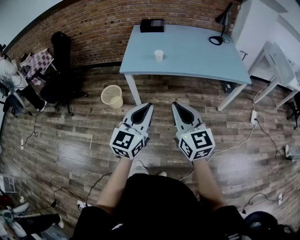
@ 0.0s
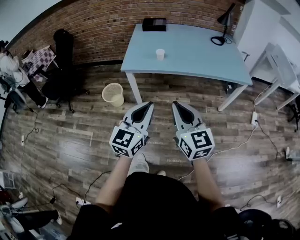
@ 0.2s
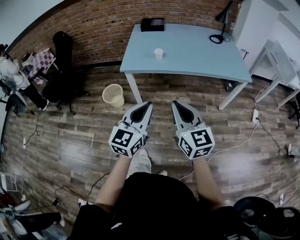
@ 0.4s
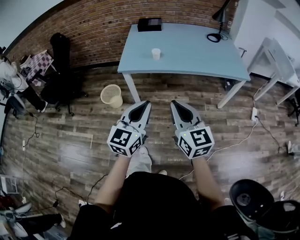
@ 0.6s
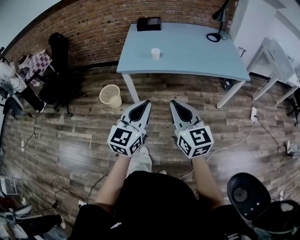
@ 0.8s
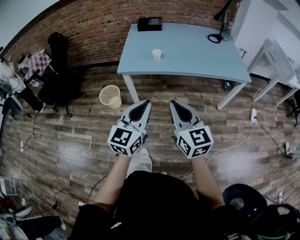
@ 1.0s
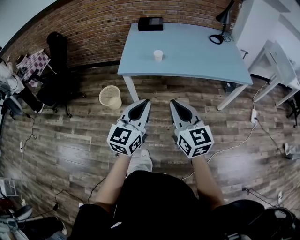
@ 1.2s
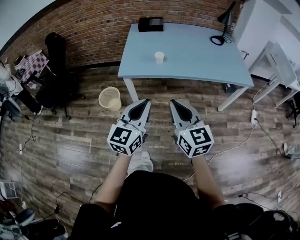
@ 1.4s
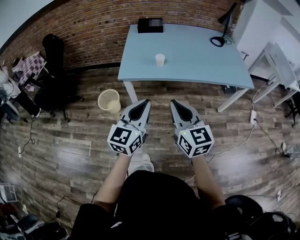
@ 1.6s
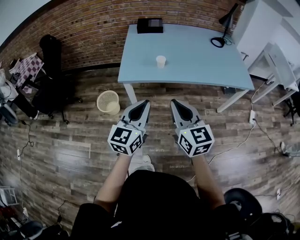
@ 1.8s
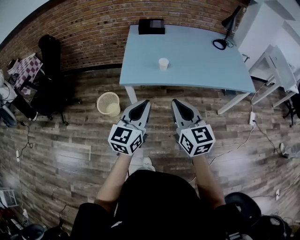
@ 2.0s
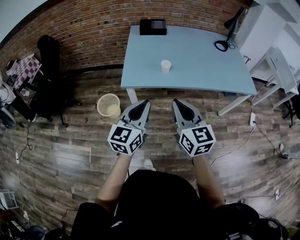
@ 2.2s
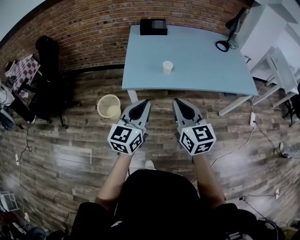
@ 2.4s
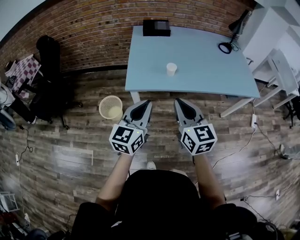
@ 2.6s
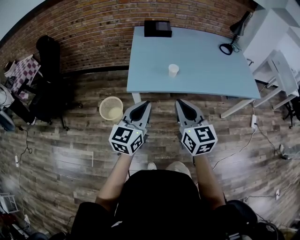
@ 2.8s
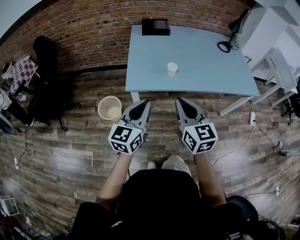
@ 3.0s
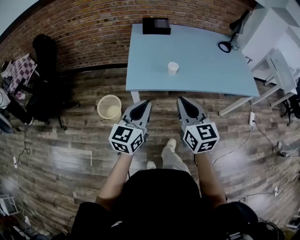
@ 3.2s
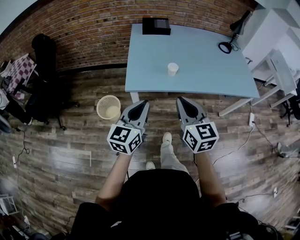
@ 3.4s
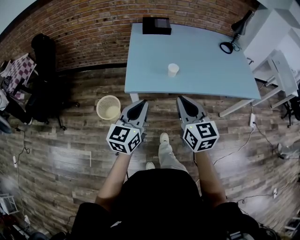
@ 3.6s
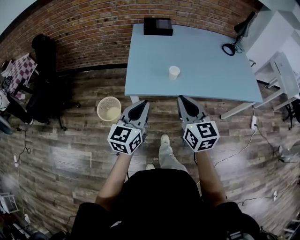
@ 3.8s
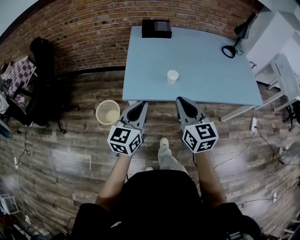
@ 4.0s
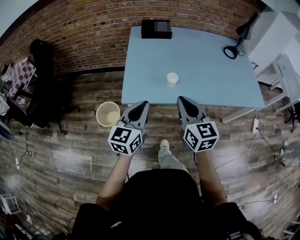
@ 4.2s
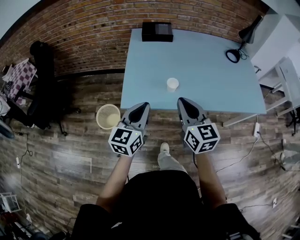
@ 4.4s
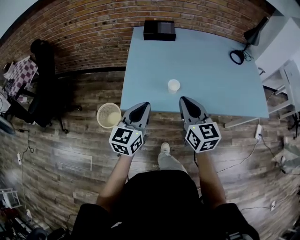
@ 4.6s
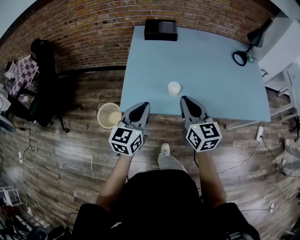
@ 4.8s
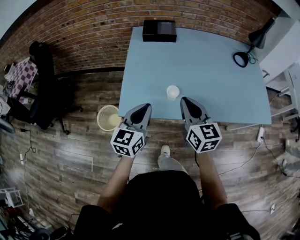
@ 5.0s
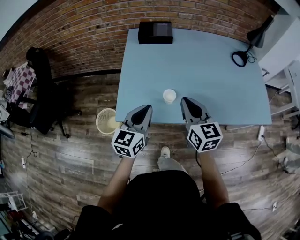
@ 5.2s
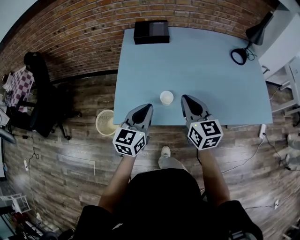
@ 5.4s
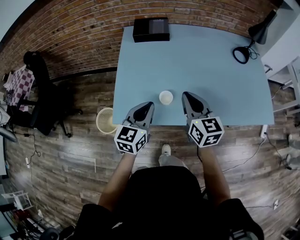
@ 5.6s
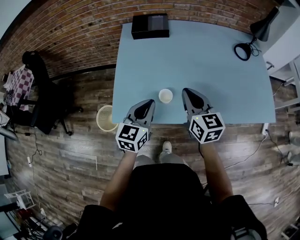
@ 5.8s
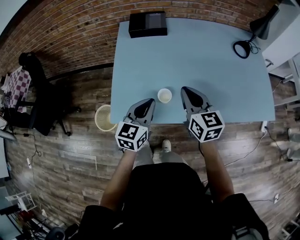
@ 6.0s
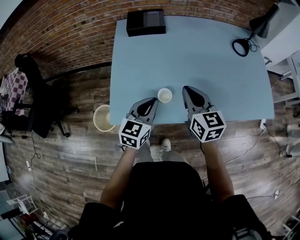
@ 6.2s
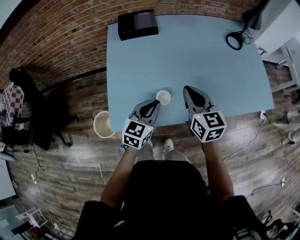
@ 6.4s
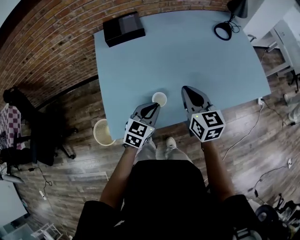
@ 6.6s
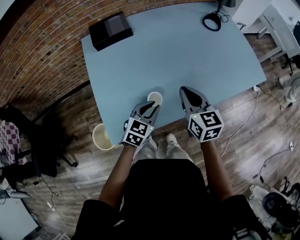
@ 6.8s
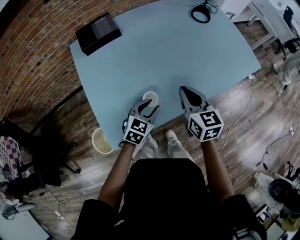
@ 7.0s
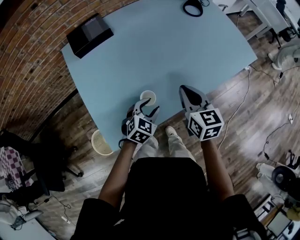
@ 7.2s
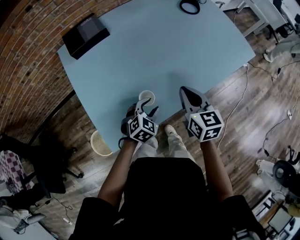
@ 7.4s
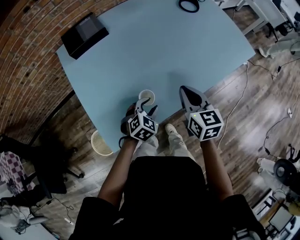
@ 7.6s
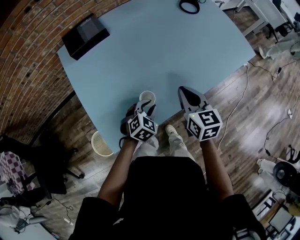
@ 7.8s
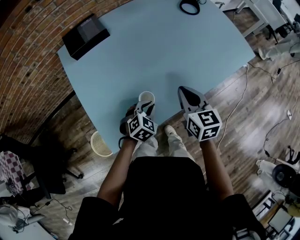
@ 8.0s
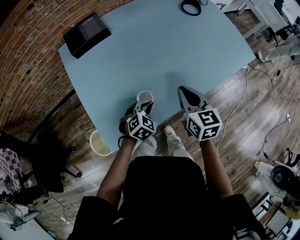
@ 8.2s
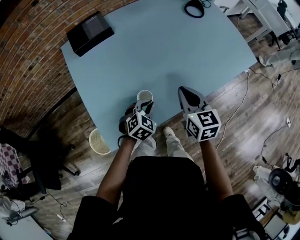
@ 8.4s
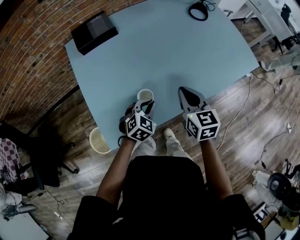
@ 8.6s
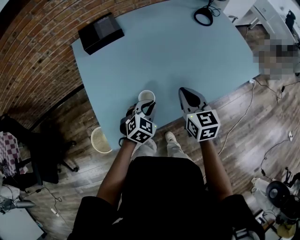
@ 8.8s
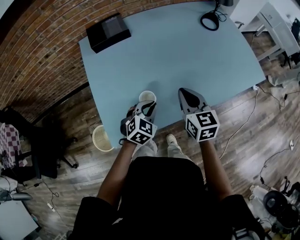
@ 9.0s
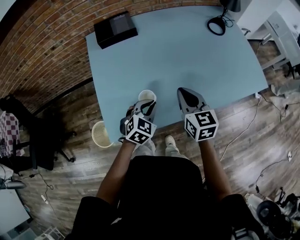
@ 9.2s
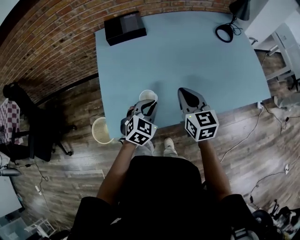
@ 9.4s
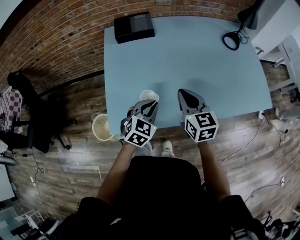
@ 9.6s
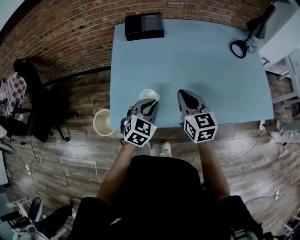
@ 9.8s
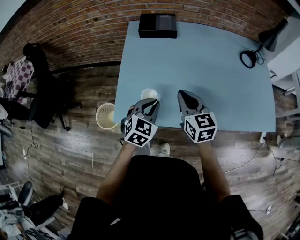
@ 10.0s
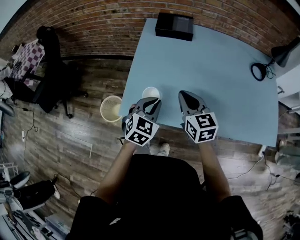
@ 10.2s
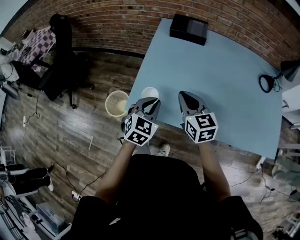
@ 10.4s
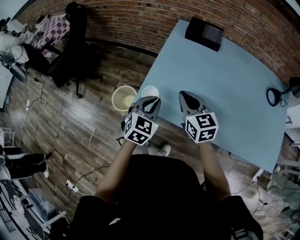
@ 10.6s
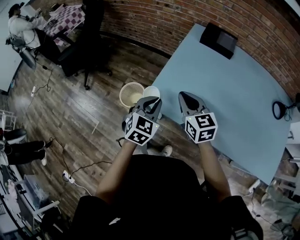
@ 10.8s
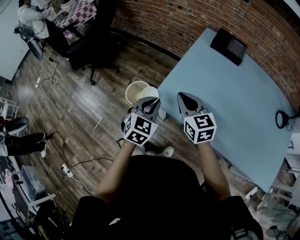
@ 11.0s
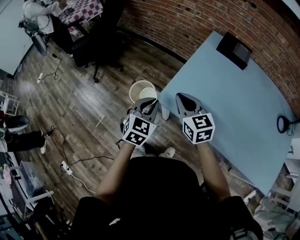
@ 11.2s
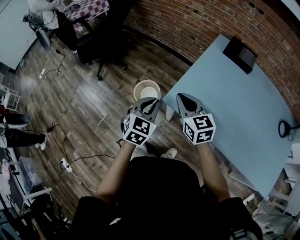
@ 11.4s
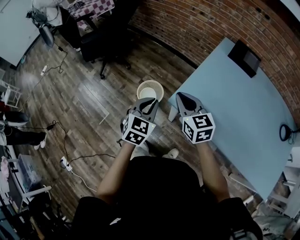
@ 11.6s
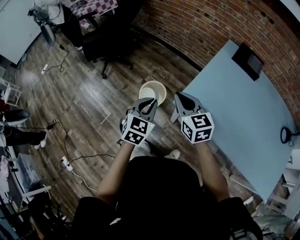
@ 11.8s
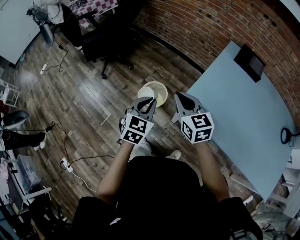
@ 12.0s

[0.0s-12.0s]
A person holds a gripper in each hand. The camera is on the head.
0.0s to 1.6s: The left gripper moves forward and to the left, some 15 cm. The right gripper is displaced forward by about 10 cm.
1.6s to 3.0s: Both grippers move forward and to the left, roughly 20 cm.
3.0s to 4.4s: The two grippers go roughly 15 cm forward.
4.4s to 6.0s: The two grippers go roughly 20 cm forward and to the right.
6.0s to 7.6s: The right gripper travels downward by some 5 cm, and rotates roughly 30 degrees. Meanwhile the left gripper is displaced downward by some 20 cm, tips its fingers downward by approximately 30 degrees, and opens.
7.6s to 9.0s: The left gripper goes some 5 cm upward, and closes up.
9.0s to 10.4s: The left gripper shifts by some 15 cm, and rotates about 40 degrees, while the right gripper shifts by some 15 cm, and turns by roughly 40 degrees.
10.4s to 12.0s: The left gripper moves approximately 30 cm, and rotates about 30 degrees; the right gripper changes place by roughly 35 cm, and turns by roughly 30 degrees.

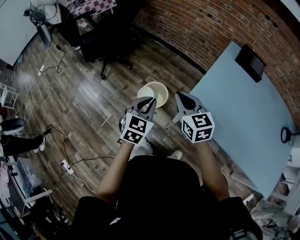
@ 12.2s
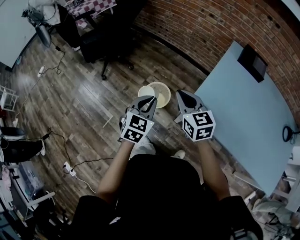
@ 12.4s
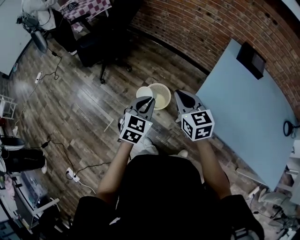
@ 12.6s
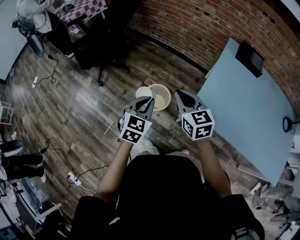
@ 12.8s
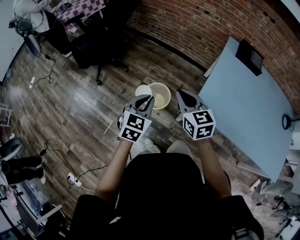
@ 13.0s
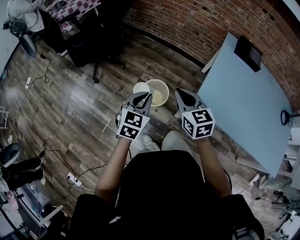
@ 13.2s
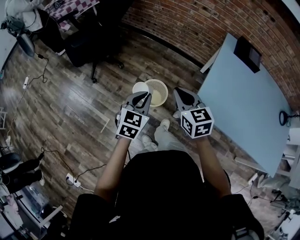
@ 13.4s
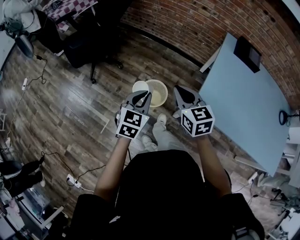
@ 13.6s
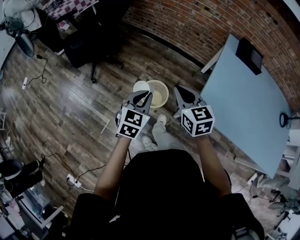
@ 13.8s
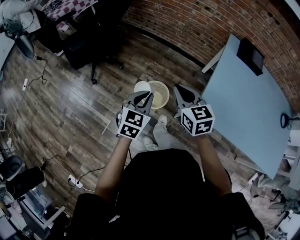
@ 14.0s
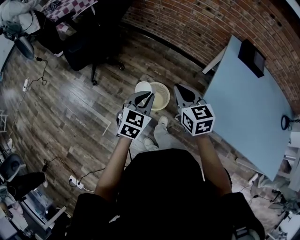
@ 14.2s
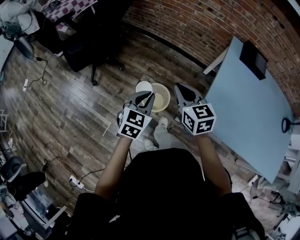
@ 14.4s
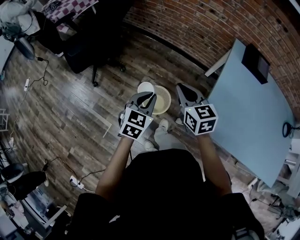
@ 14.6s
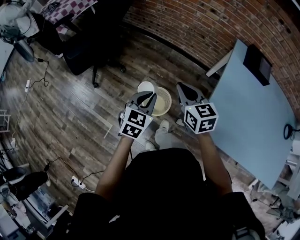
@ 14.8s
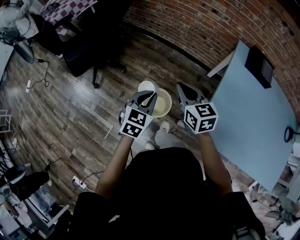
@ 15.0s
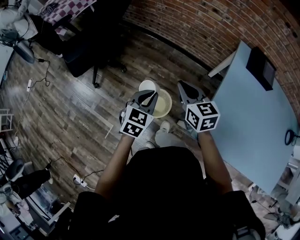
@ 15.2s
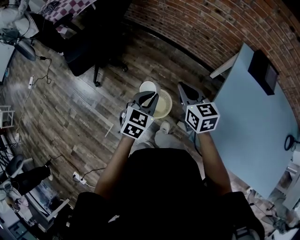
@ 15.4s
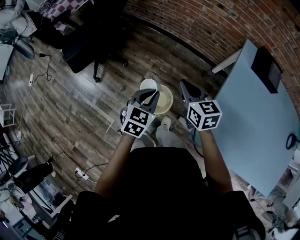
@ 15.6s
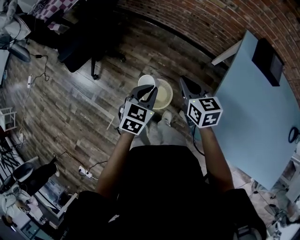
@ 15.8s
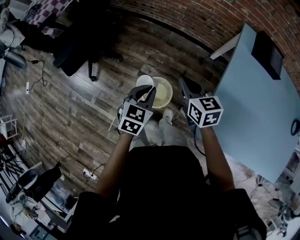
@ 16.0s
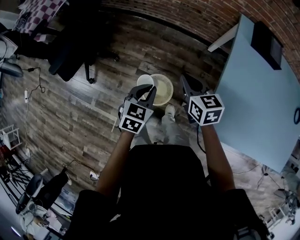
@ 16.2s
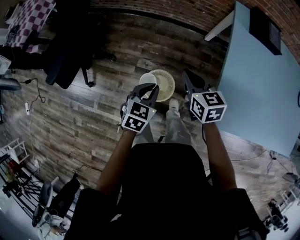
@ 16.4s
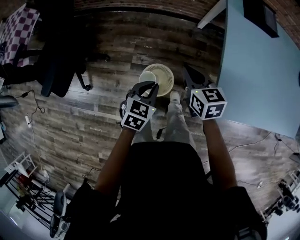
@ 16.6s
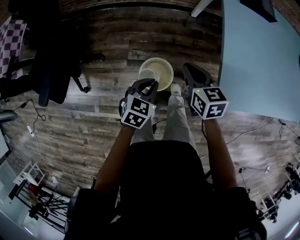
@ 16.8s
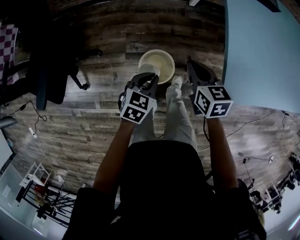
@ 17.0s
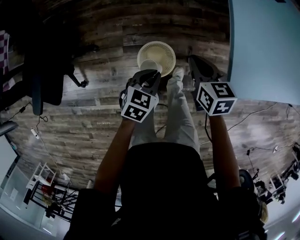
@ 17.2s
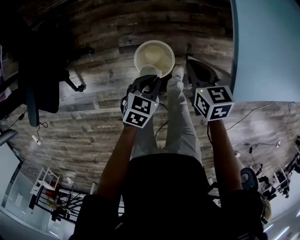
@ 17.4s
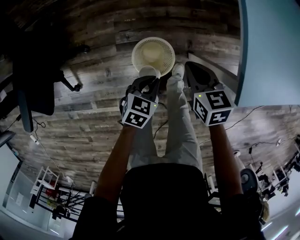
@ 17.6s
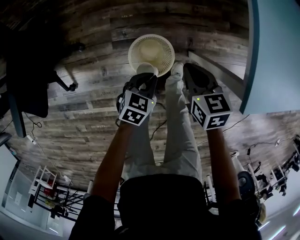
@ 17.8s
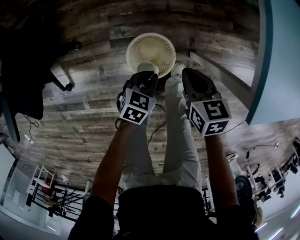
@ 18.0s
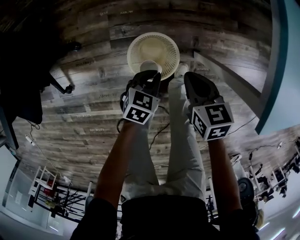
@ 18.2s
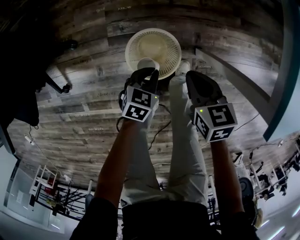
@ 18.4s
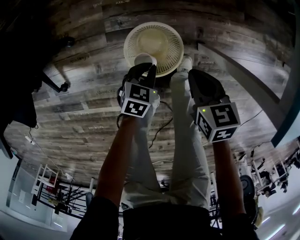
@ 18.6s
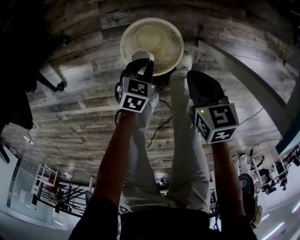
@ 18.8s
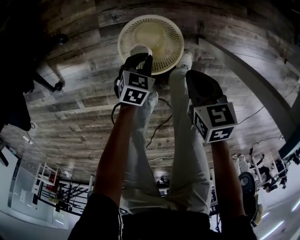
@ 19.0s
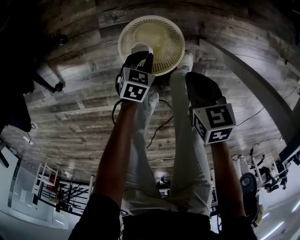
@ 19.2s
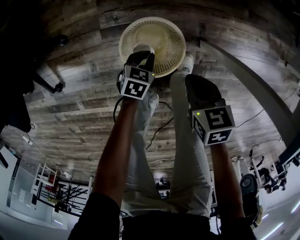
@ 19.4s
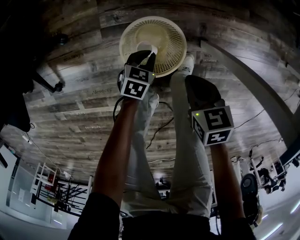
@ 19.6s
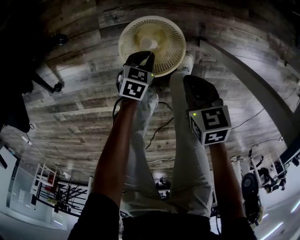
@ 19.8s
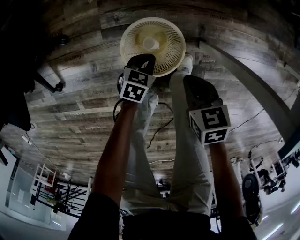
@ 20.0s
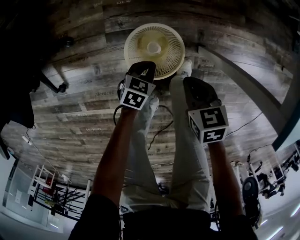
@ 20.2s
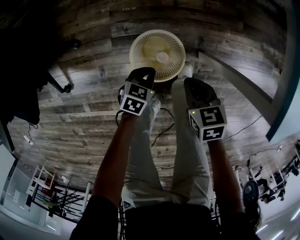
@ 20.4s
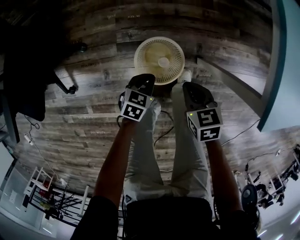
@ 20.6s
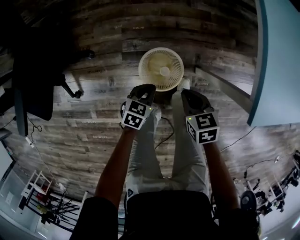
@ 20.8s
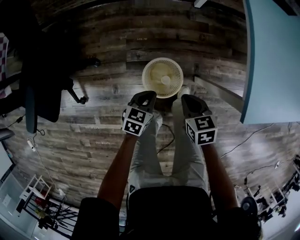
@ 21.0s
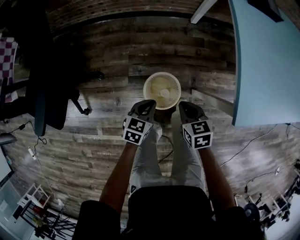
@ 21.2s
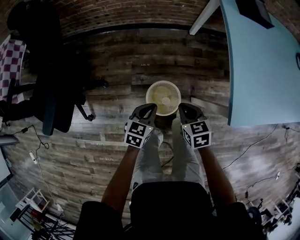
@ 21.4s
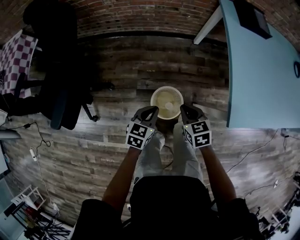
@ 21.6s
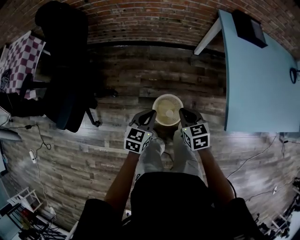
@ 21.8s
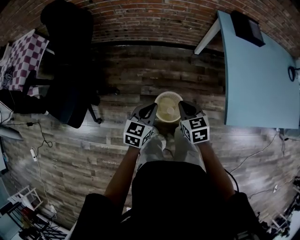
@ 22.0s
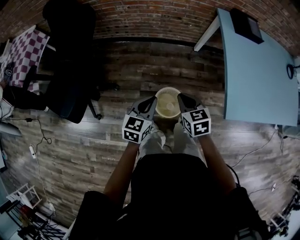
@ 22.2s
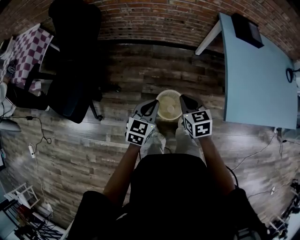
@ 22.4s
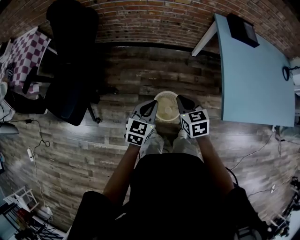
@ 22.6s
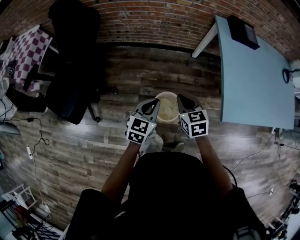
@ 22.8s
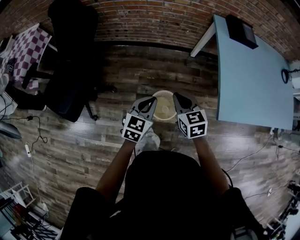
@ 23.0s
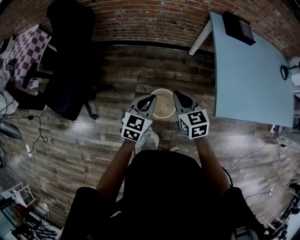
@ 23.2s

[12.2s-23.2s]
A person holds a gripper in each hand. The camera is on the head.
12.2s to 13.8s: Both grippers move to the left and forward, some 15 cm.
13.8s to 15.4s: Both grippers travel together forward, roughly 20 cm.
15.4s to 17.0s: The two grippers go approximately 15 cm downward. The right gripper changes its angle by approximately 40 degrees. The left gripper changes its angle by roughly 40 degrees.
17.0s to 18.4s: The two grippers go some 30 cm downward.
18.4s to 20.0s: The left gripper is displaced downward by about 10 cm. The right gripper travels downward and backward by about 10 cm.
20.0s to 21.6s: The two grippers go about 35 cm upward. The left gripper turns by some 20 degrees.
21.6s to 23.2s: The grippers both shift upward by approximately 15 cm.

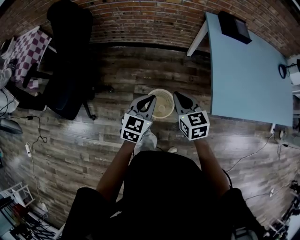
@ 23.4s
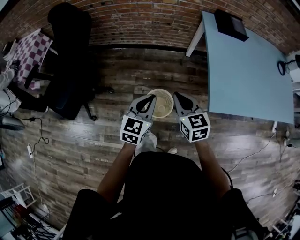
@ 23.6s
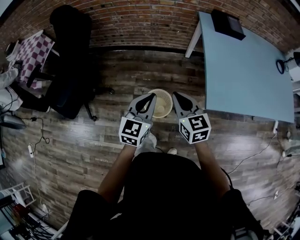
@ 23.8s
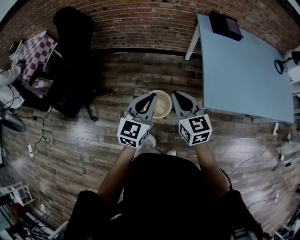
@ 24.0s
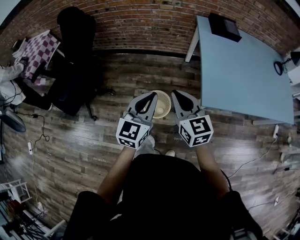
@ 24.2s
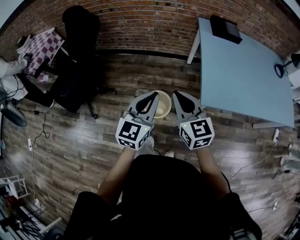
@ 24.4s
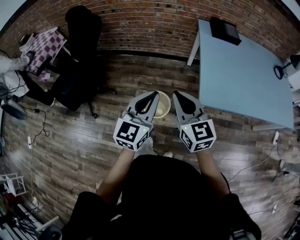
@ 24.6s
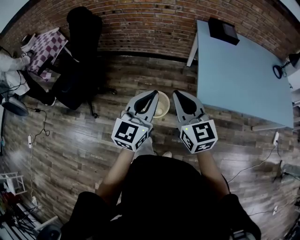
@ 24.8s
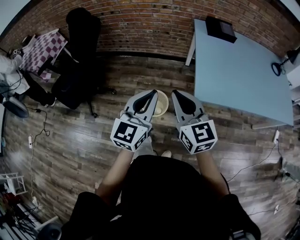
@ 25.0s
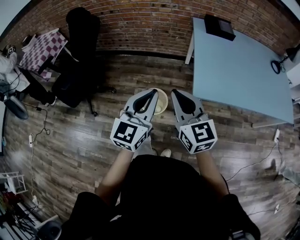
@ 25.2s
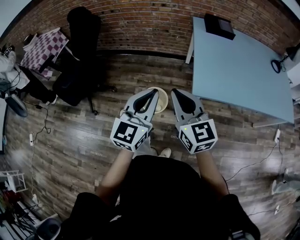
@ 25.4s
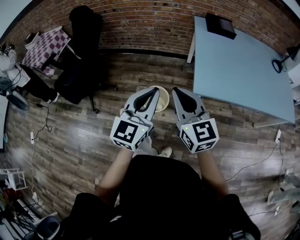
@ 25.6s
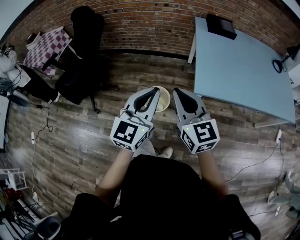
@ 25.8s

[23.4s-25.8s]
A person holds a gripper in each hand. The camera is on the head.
23.4s to 24.6s: The grippers both shift upward, backward and to the right by about 20 cm. The right gripper swivels roughly 20 degrees.
24.6s to 25.8s: The two grippers go some 10 cm backward.
